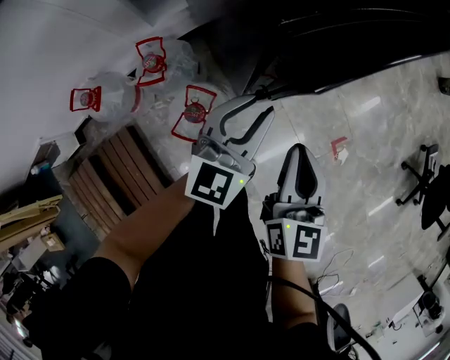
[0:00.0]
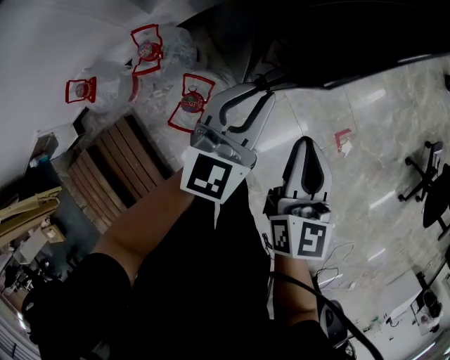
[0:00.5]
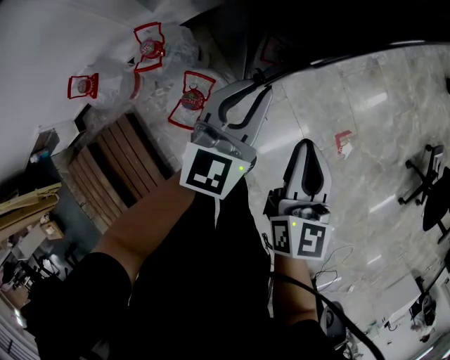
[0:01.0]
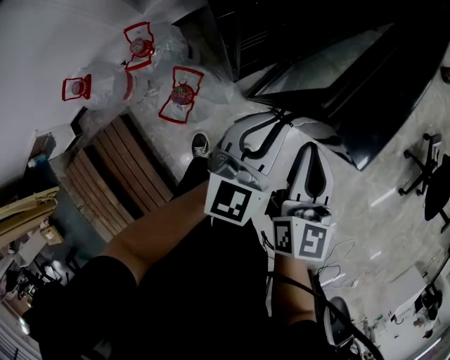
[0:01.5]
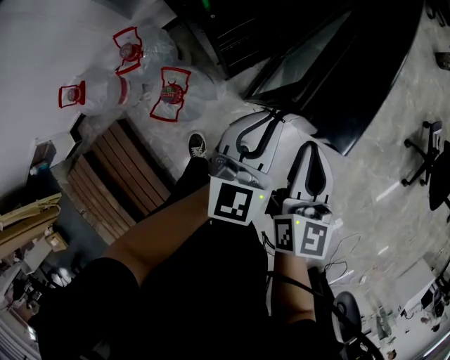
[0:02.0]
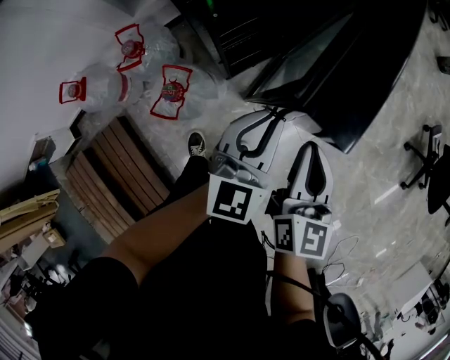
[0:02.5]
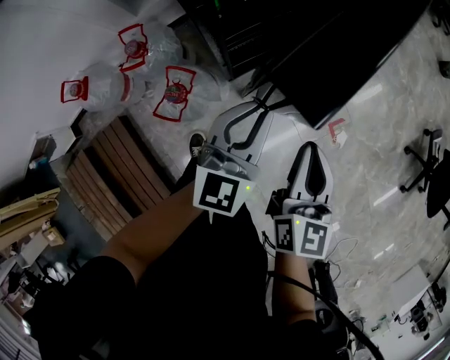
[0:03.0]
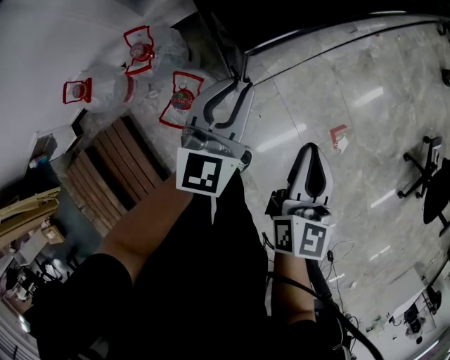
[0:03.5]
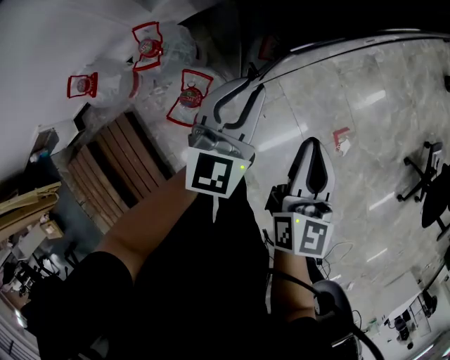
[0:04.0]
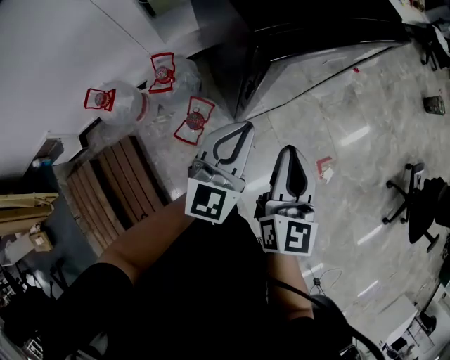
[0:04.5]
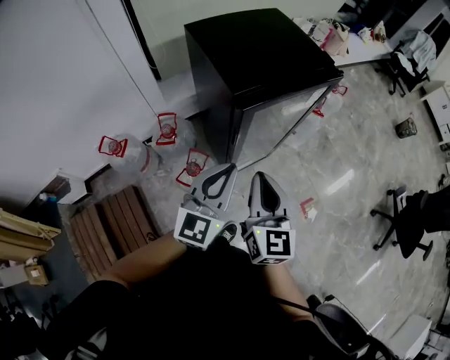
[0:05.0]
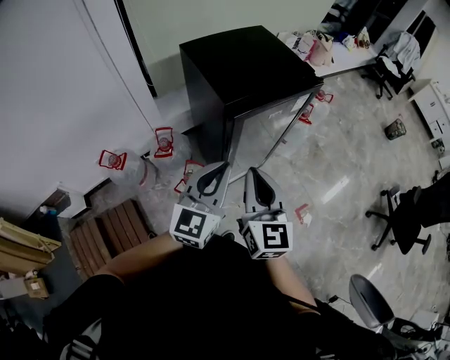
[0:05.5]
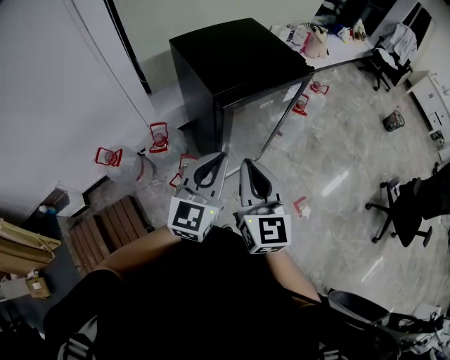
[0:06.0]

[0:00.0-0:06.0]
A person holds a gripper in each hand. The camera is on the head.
0:00.0 to 0:02.0: The right gripper shifts approximately 15 cm to the right; the left gripper shifts approximately 15 cm to the right and backward.
0:02.0 to 0:04.0: The left gripper is displaced to the left and forward by approximately 15 cm, while the right gripper shifts roughly 10 cm to the left.
0:04.0 to 0:06.0: The left gripper travels upward and backward by roughly 30 cm. The right gripper is displaced upward by roughly 25 cm, and changes its angle by approximately 20 degrees.

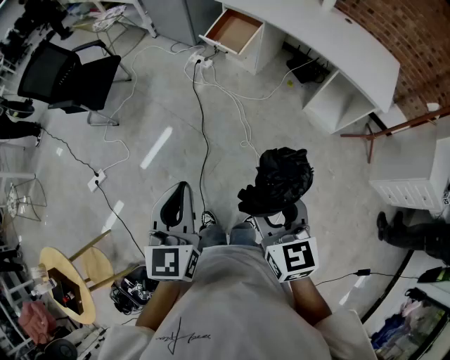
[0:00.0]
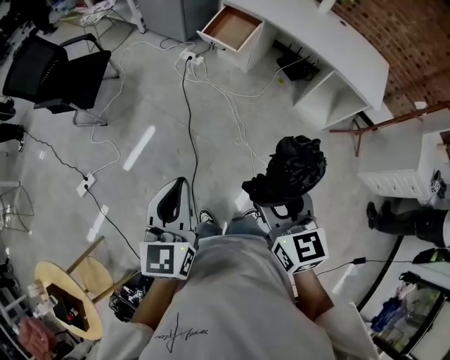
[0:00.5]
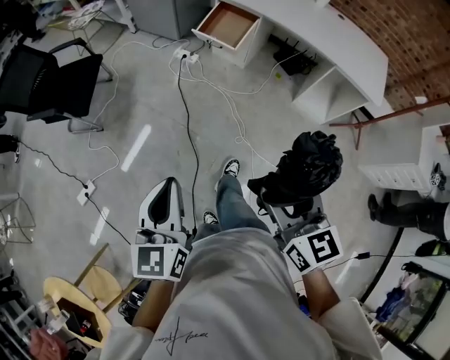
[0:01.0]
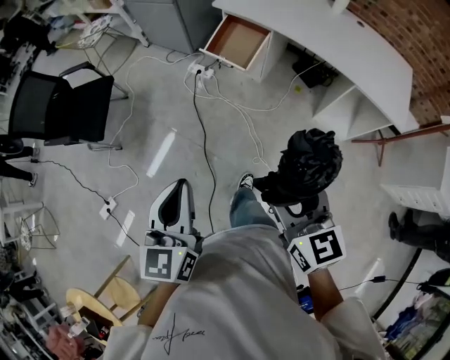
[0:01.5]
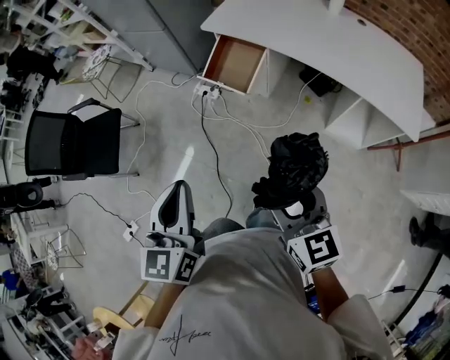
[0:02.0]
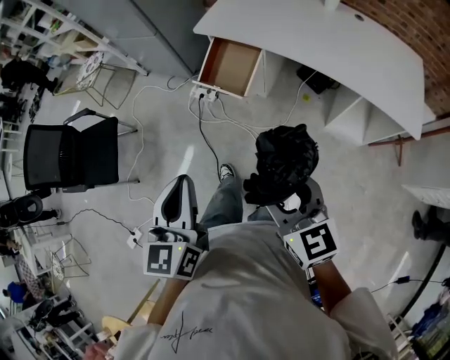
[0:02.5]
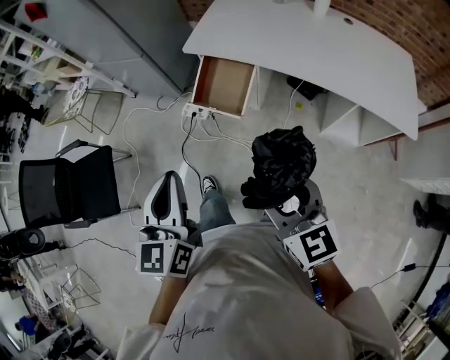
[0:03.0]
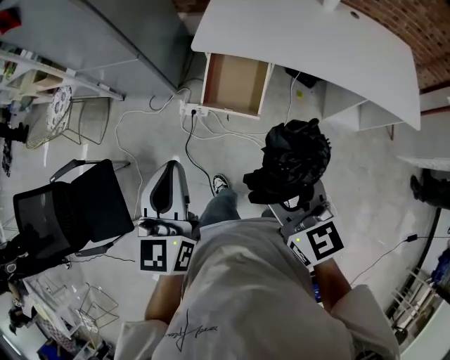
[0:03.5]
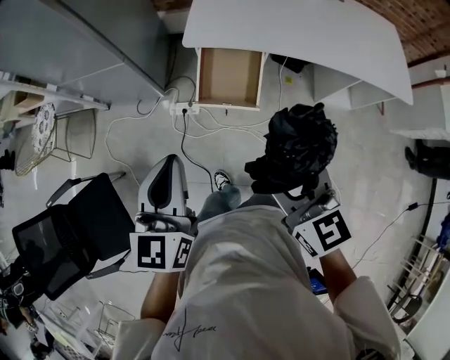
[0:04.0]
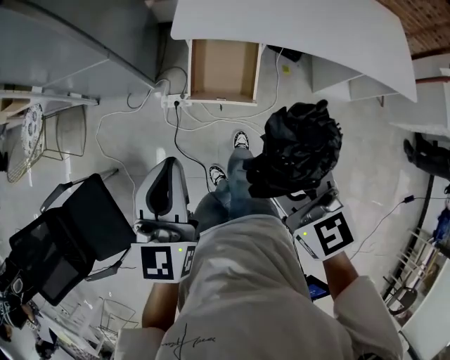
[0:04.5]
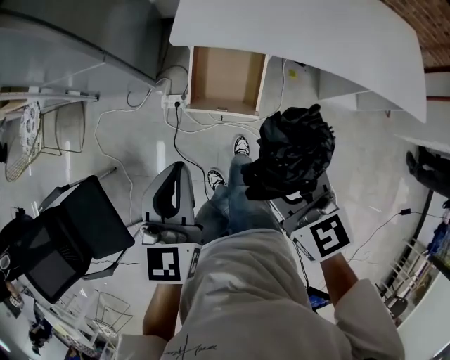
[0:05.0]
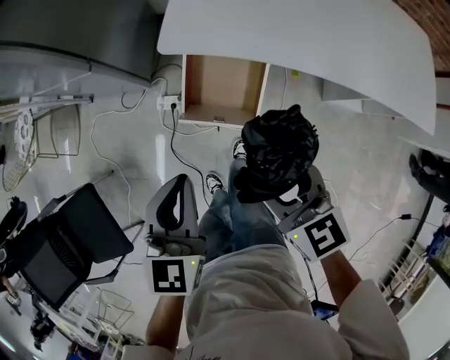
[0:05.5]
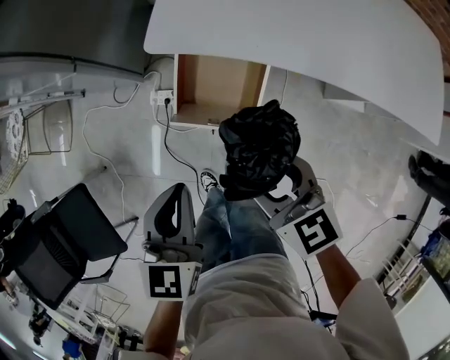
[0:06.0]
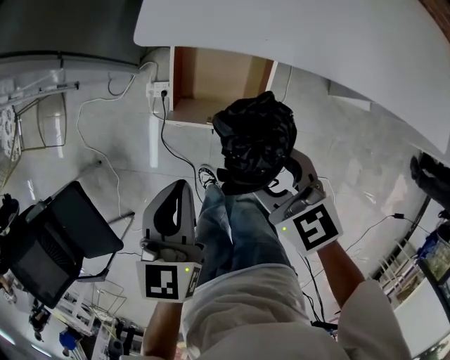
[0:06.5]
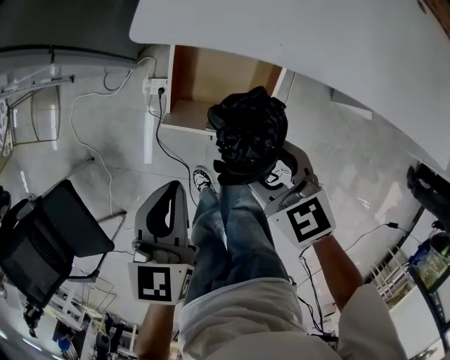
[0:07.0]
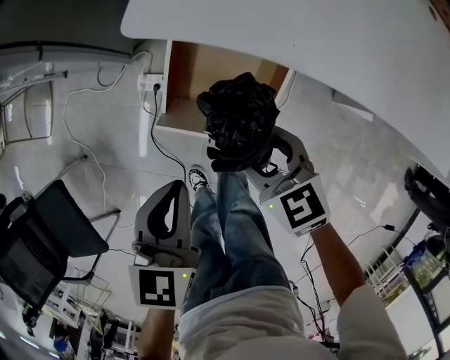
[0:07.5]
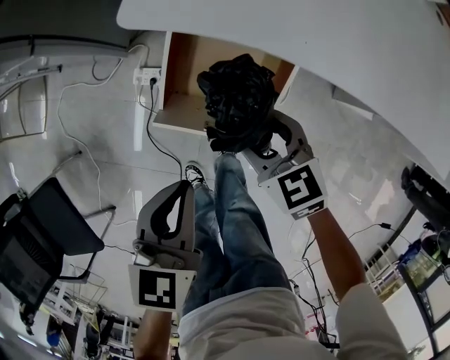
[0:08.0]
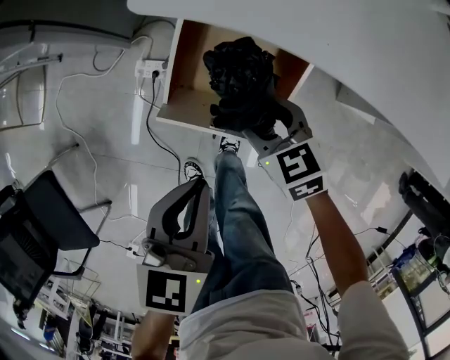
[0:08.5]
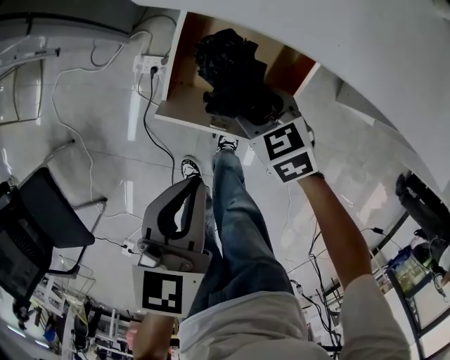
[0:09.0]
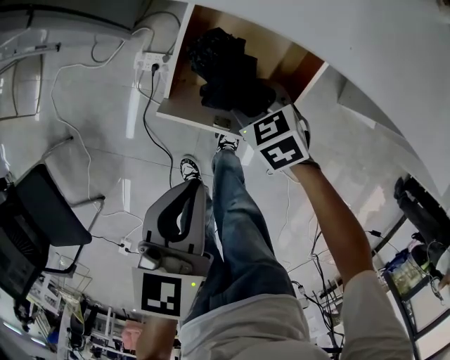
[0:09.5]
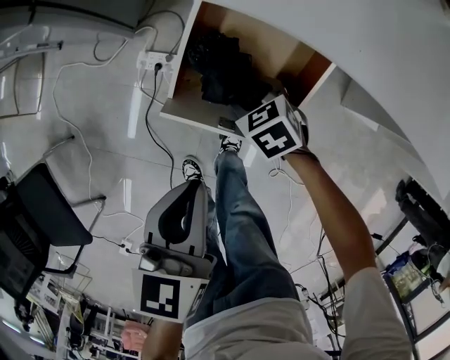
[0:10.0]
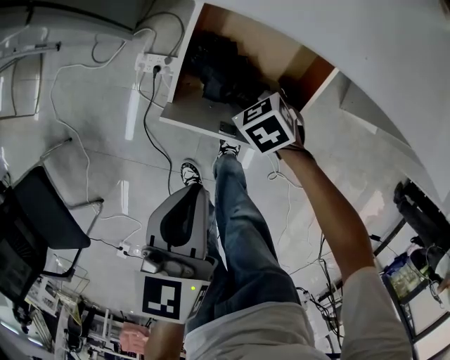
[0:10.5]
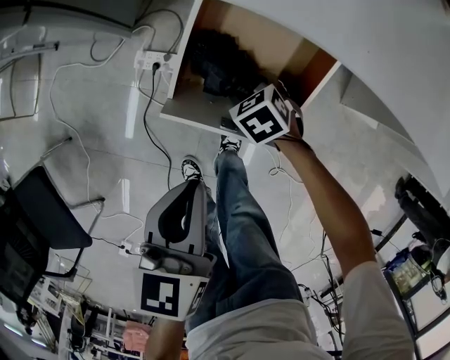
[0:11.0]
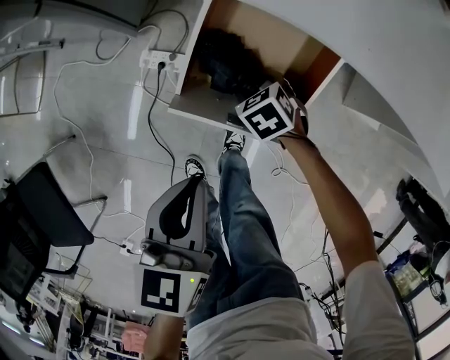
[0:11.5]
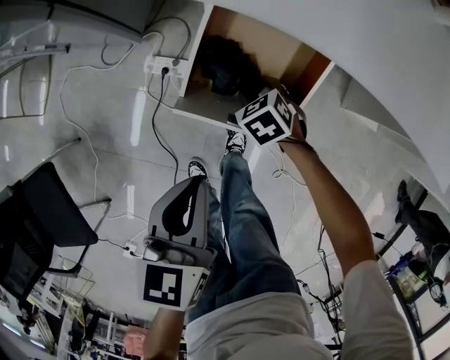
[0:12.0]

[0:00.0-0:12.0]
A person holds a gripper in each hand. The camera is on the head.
0:00.0 to 0:02.0: Both grippers travel together forward, some 35 cm.
0:02.0 to 0:04.0: The grippers both shift forward and to the left by approximately 35 cm. The left gripper changes its angle by roughly 30 degrees.
0:04.0 to 0:06.0: The left gripper travels downward, forward and to the right by roughly 25 cm. The right gripper moves downward and forward, roughly 25 cm.
0:06.0 to 0:08.0: The left gripper shifts some 15 cm downward. The right gripper shifts about 20 cm downward and forward.
0:08.0 to 0:10.0: The right gripper goes roughly 15 cm downward, and turns by roughly 20 degrees.
0:10.0 to 0:12.0: The grippers stay close to where they were, moving slightly.

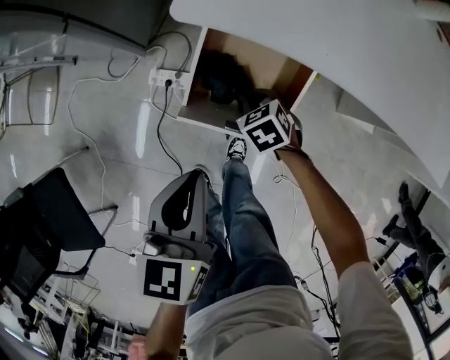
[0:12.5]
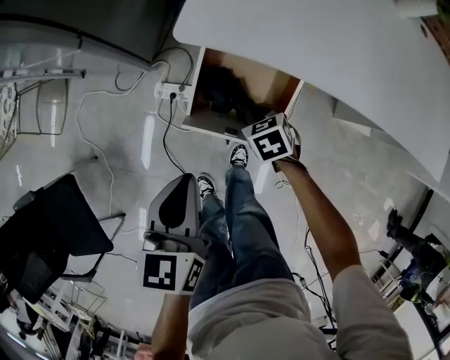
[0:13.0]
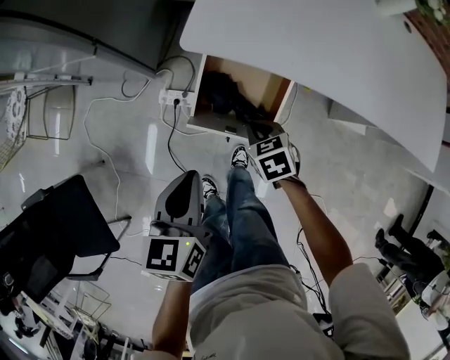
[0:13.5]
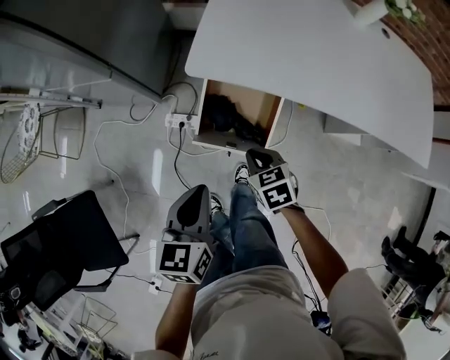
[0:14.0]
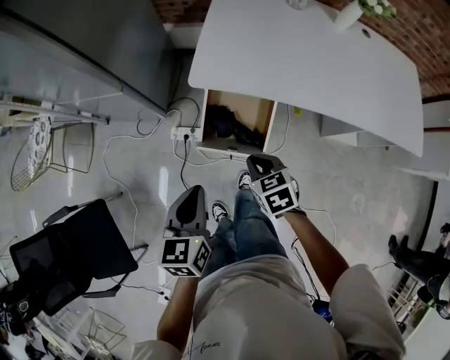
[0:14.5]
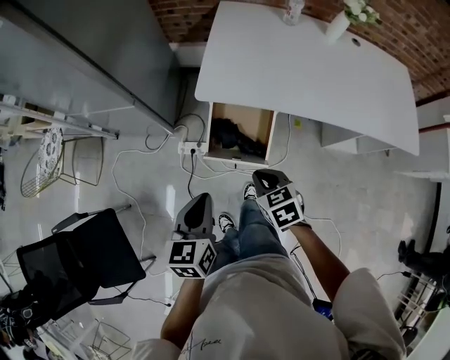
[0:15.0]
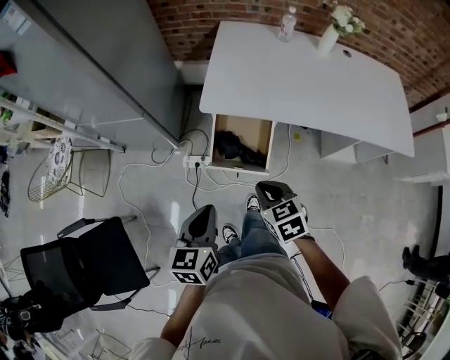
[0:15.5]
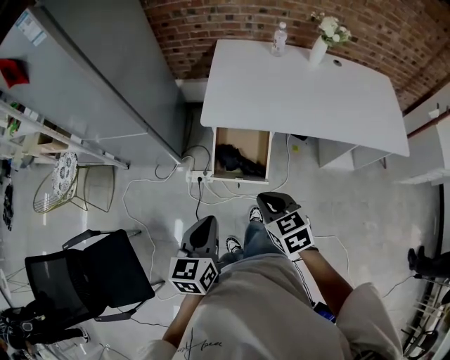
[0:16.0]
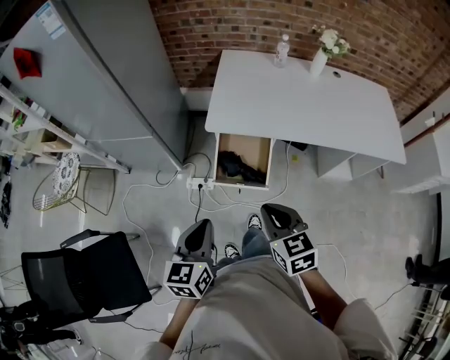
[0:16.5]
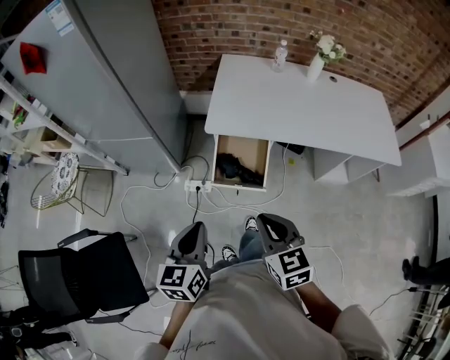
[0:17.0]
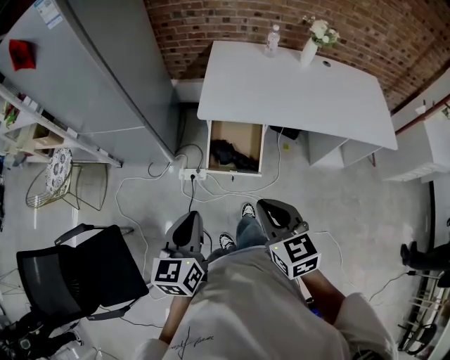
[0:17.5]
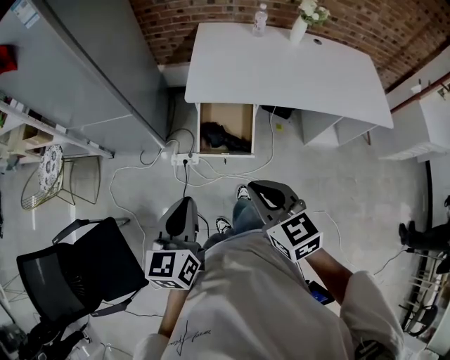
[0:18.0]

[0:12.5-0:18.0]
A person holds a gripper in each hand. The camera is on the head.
0:12.5 to 0:14.5: The left gripper is displaced upward and backward by roughly 15 cm, while the right gripper moves upward and backward, roughly 30 cm, and changes its angle by approximately 20 degrees.
0:14.5 to 0:16.0: The left gripper moves backward and upward, some 10 cm. Meanwhile the right gripper shifts roughly 15 cm upward and backward.
0:16.0 to 0:18.0: The right gripper heads upward and backward, covering about 10 cm; the left gripper travels upward by approximately 5 cm.

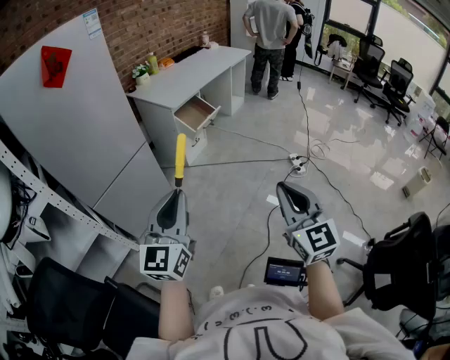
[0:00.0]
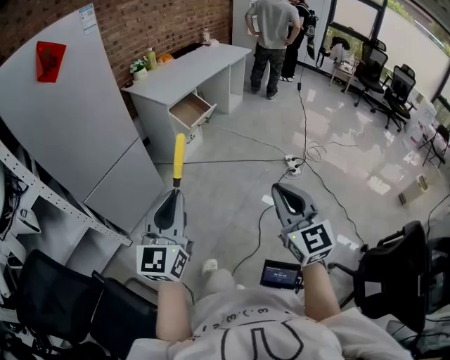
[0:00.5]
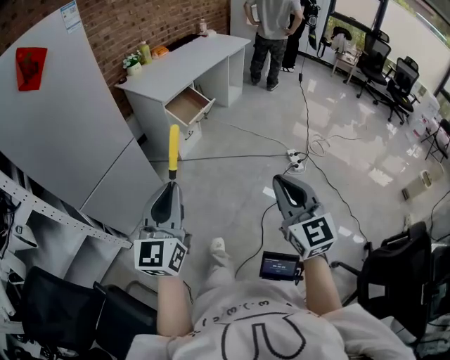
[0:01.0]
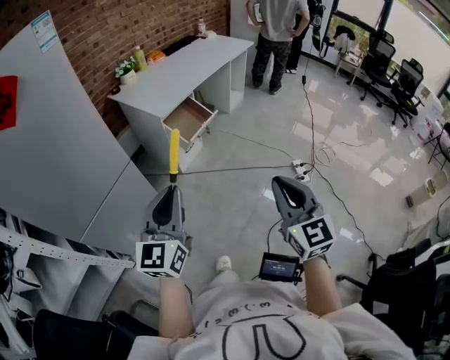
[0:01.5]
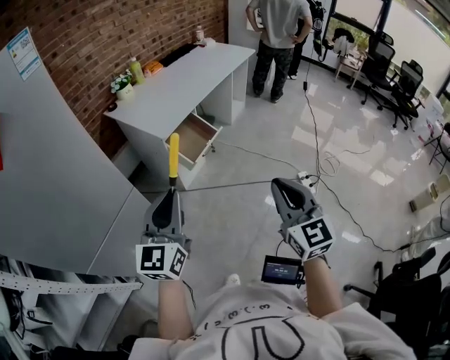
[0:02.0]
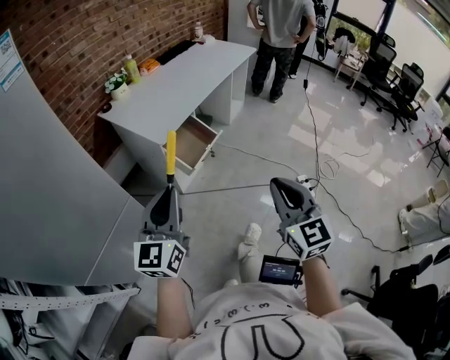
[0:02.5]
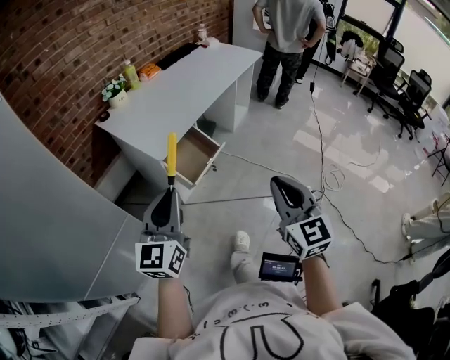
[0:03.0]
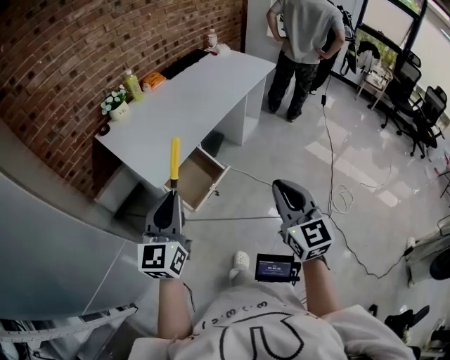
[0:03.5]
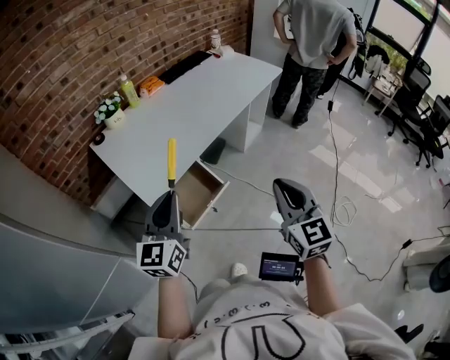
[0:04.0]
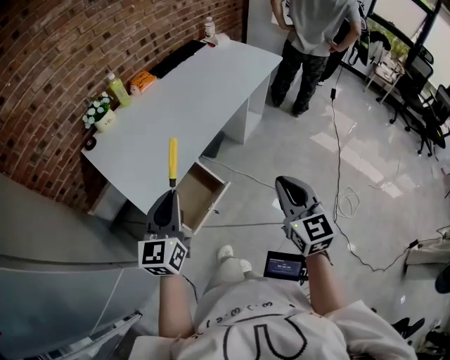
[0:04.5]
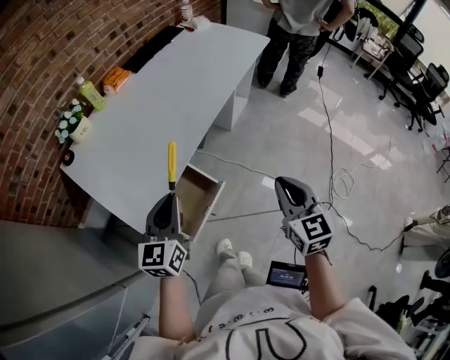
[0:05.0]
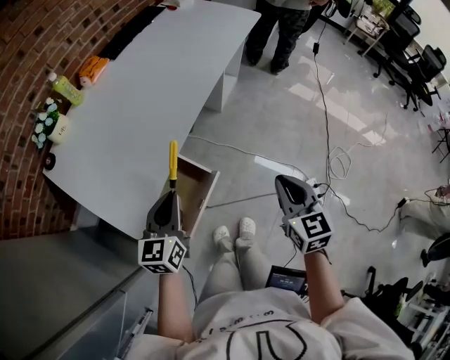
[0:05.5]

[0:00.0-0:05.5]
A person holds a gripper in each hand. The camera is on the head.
0:00.0 to 0:02.0: Both grippers travel together forward, approximately 40 cm.
0:02.0 to 0:03.5: The two grippers go roughly 35 cm forward.
0:03.5 to 0:05.5: The grippers both shift forward and downward by about 30 cm. The right gripper swivels approximately 30 degrees; the left gripper turns by roughly 20 degrees.
